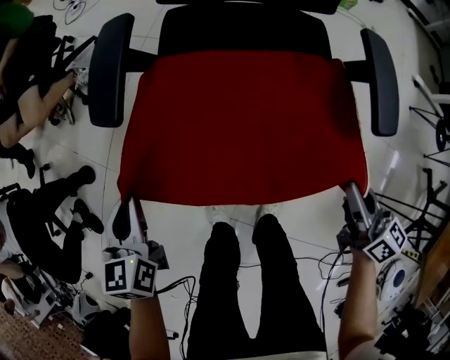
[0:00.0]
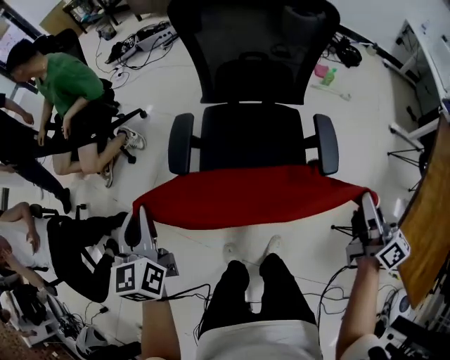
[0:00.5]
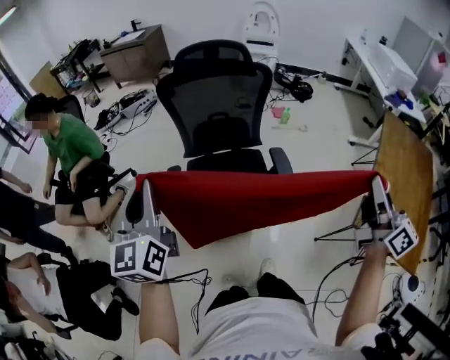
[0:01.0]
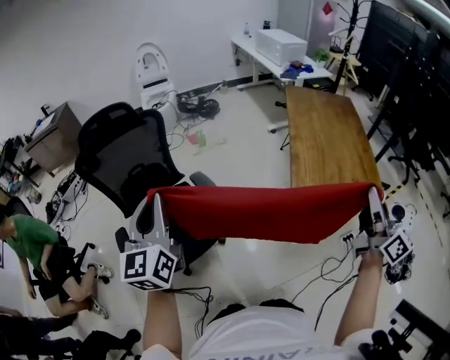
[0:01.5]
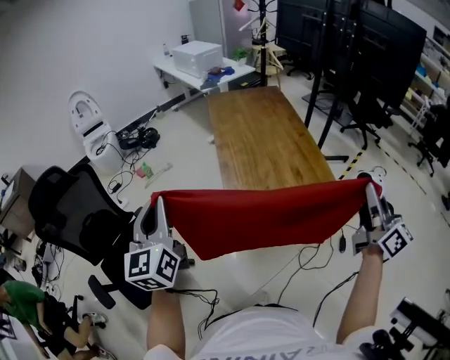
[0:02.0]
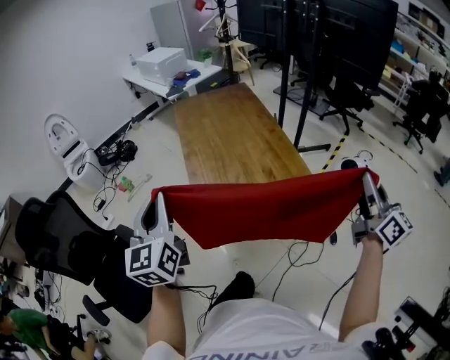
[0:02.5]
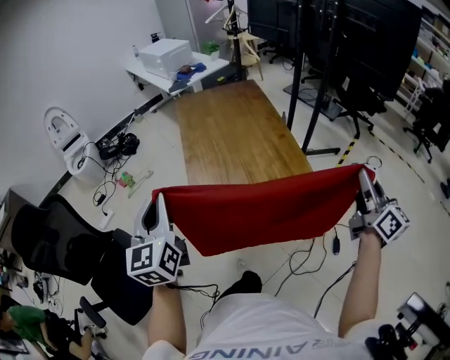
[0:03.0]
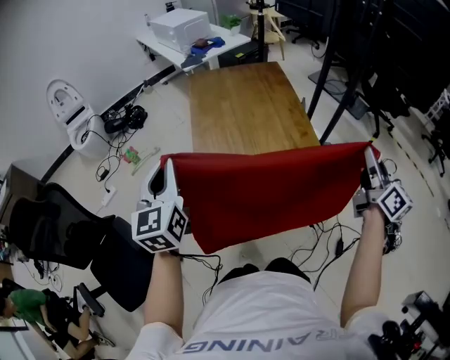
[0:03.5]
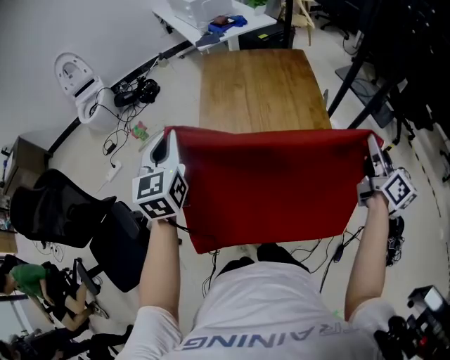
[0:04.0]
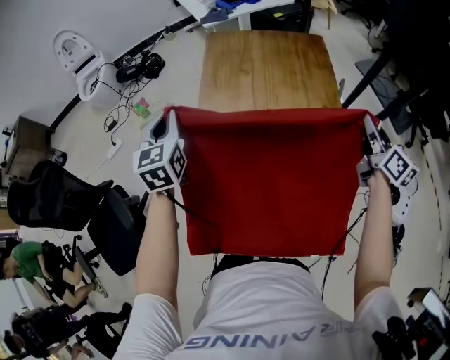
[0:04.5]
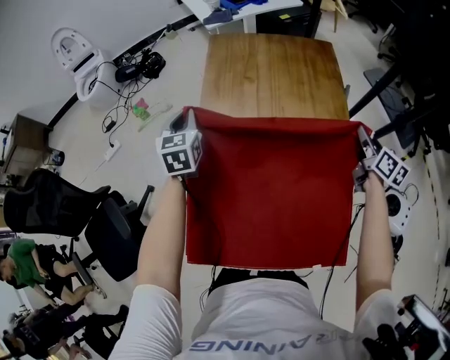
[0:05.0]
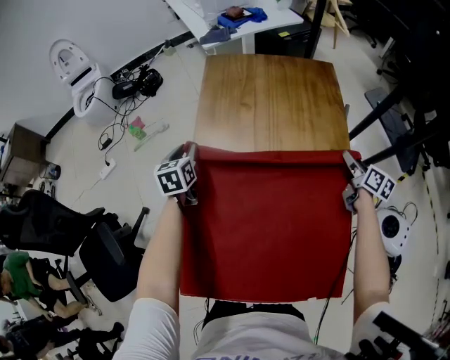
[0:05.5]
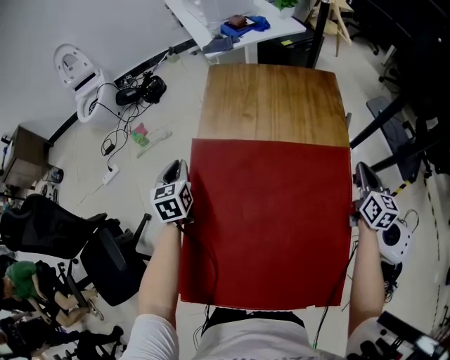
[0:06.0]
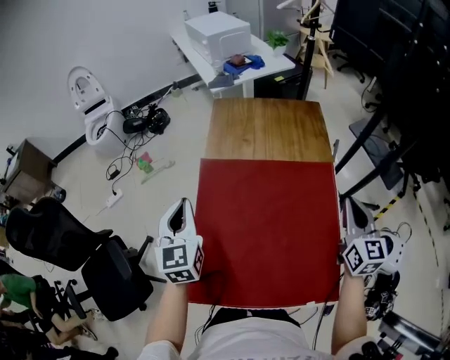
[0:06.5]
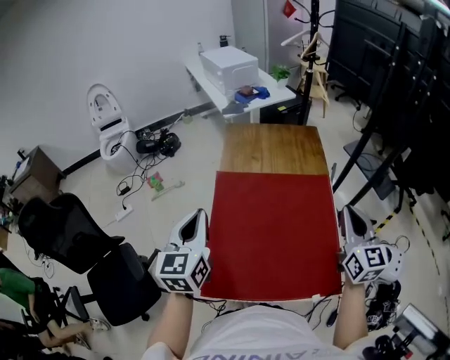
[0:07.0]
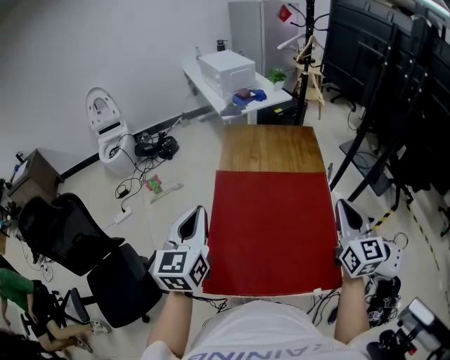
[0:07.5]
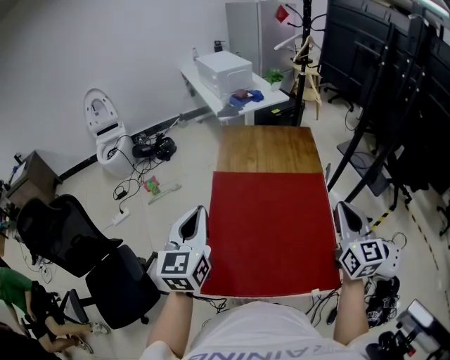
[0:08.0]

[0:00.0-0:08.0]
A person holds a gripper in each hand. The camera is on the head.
0:00.0 to 0:02.0: The left gripper changes place by roughly 80 cm, and points its fingers about 40 degrees further upward, while the right gripper ends up roughly 90 cm from where it was, and changes its angle by some 90 degrees.
0:02.0 to 0:04.0: The two grippers travel together, forward, some 50 cm.
0:04.0 to 0:06.0: The left gripper goes approximately 30 cm downward and forward, and rotates some 20 degrees. Meanwhile the right gripper moves forward and downward, some 30 cm, changes its angle by roughly 20 degrees, and opens and closes again.
0:06.0 to 0:08.0: The left gripper is displaced upward and backward by roughly 40 cm, and changes its angle by approximately 30 degrees. Meanwhile the right gripper heads backward, upward and to the left, covering about 40 cm, and turns by approximately 20 degrees.

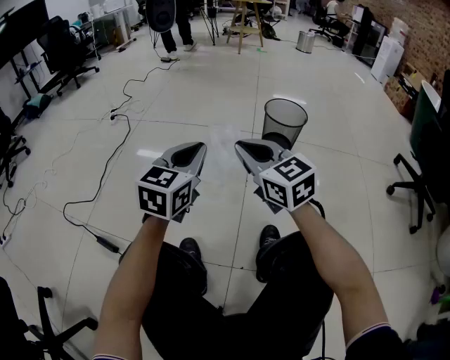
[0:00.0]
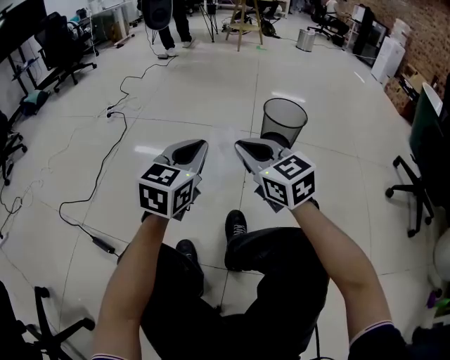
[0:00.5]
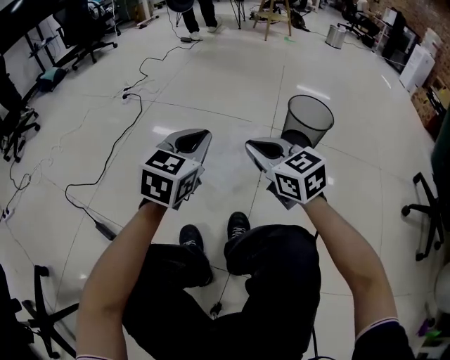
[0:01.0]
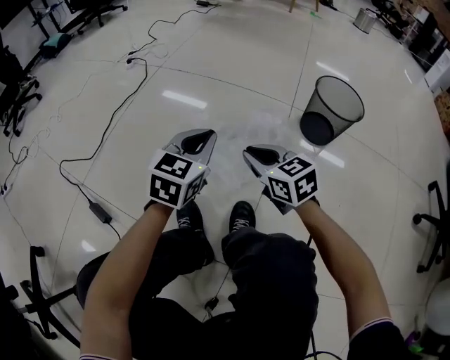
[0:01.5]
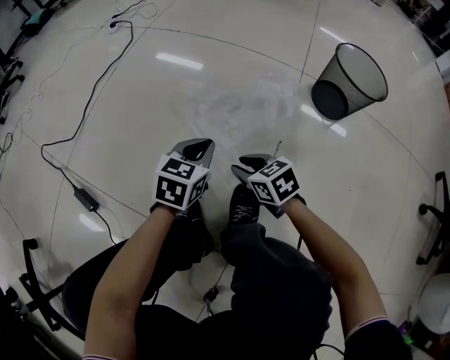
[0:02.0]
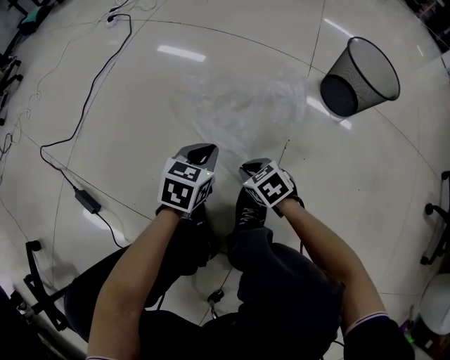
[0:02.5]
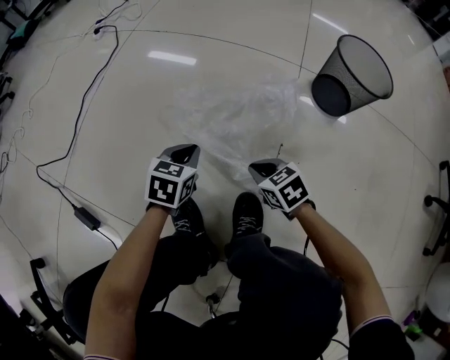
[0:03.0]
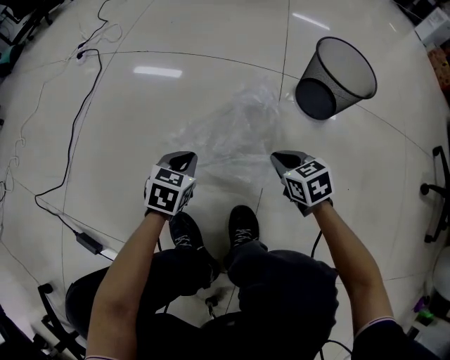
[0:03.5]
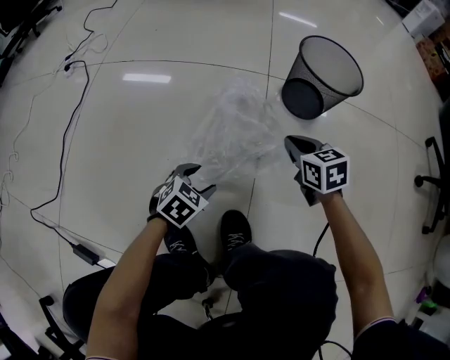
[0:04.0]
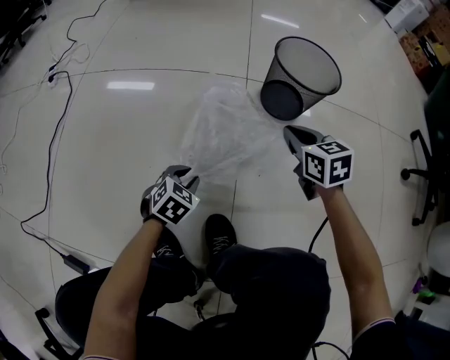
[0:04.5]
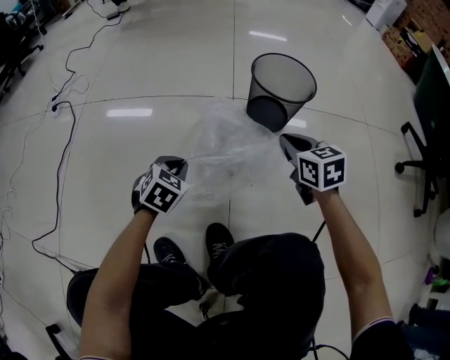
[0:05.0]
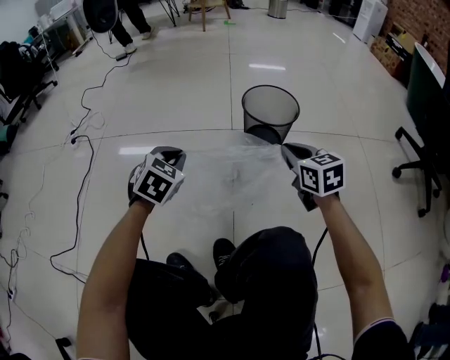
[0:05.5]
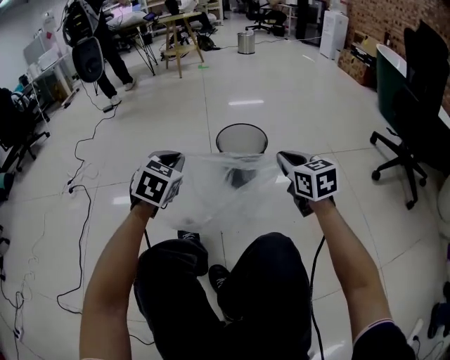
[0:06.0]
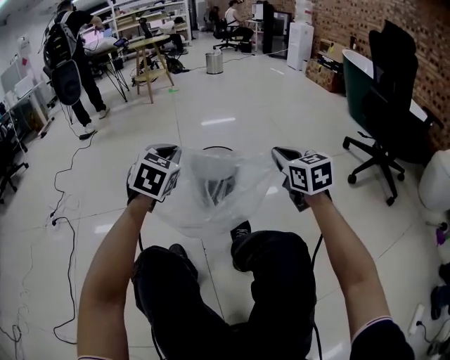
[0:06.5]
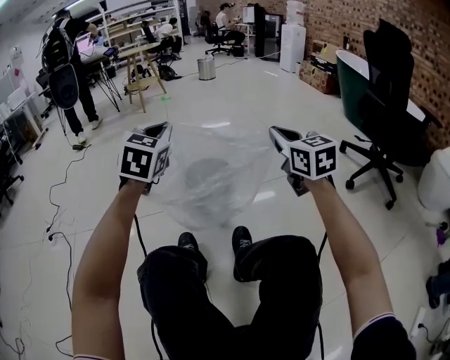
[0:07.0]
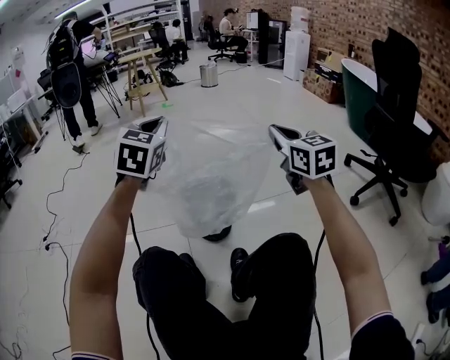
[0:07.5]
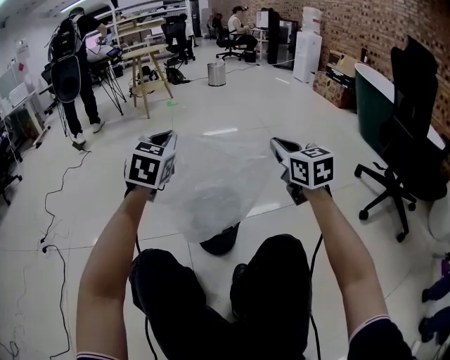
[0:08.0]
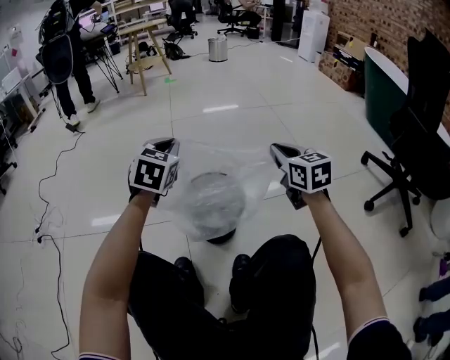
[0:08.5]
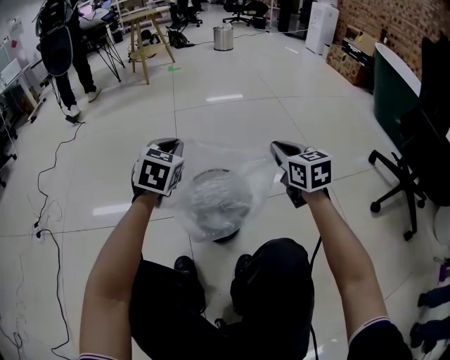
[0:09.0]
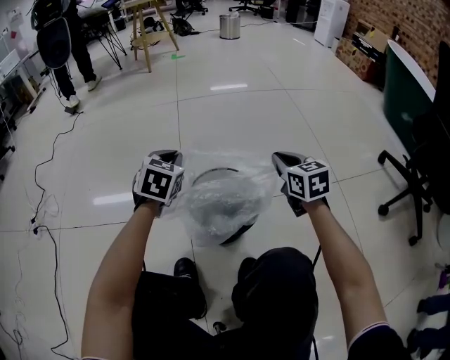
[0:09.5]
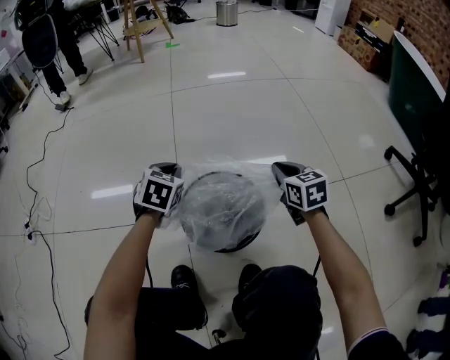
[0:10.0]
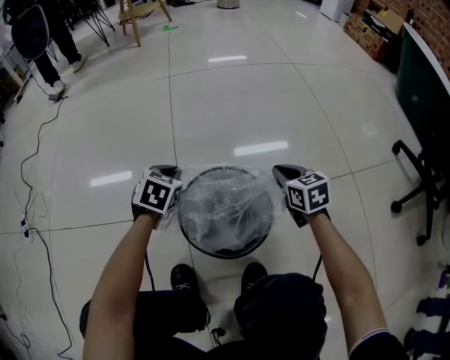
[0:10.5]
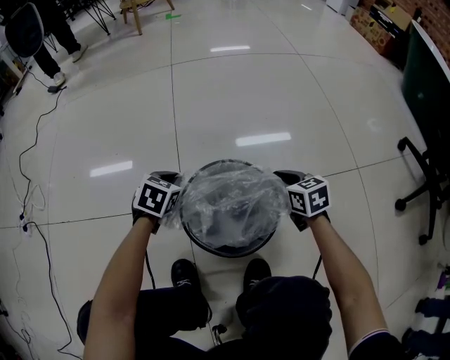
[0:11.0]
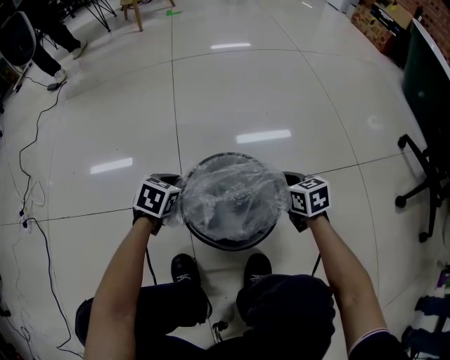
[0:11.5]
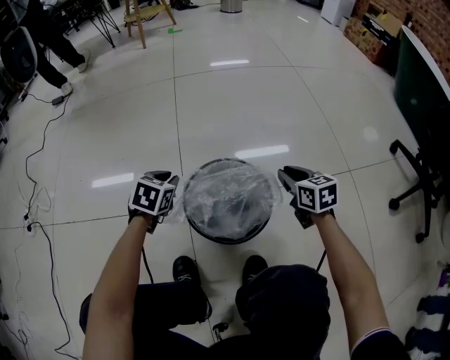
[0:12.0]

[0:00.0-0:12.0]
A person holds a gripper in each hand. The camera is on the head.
0:00.0 to 0:02.0: The grippers both shift downward by about 35 cm. The left gripper swivels some 30 degrees. The right gripper angles its fingers downward, by about 30 degrees, and opens.
0:02.0 to 0:04.0: The left gripper goes approximately 10 cm downward, changes its angle by roughly 40 degrees, and opens up. Meanwhile the right gripper changes place by about 25 cm, turns by some 30 degrees, and closes up.
0:04.0 to 0:06.0: The right gripper travels upward and to the right by about 30 cm, and changes its angle by about 30 degrees, while the left gripper heads upward and forward, covering about 40 cm, turns by about 30 degrees, and closes up.
0:06.0 to 0:08.0: The left gripper moves forward and upward, about 30 cm. Meanwhile the right gripper goes approximately 30 cm forward, upward and to the right.
0:08.0 to 0:10.0: Both grippers move downward, some 30 cm. The left gripper swivels about 30 degrees; the right gripper changes its angle by about 20 degrees.
0:10.0 to 0:12.0: The two grippers go some 5 cm downward.

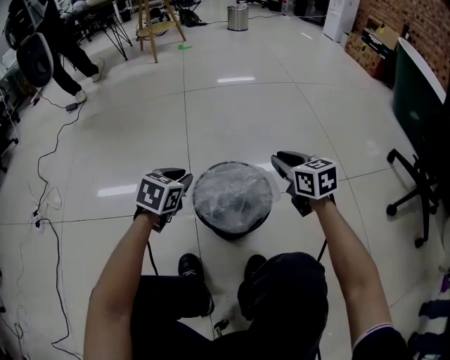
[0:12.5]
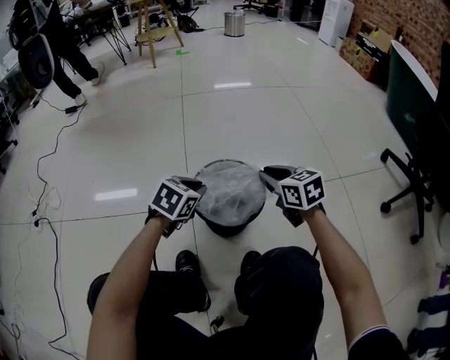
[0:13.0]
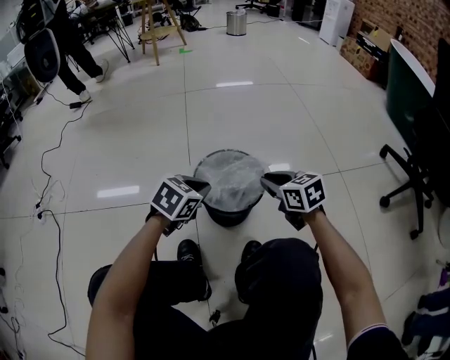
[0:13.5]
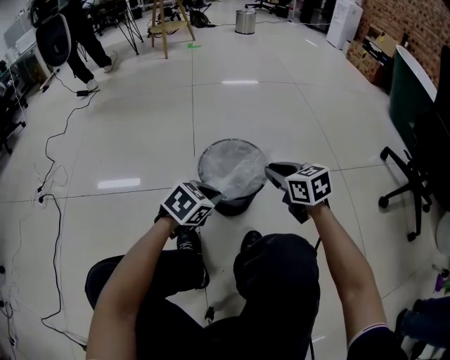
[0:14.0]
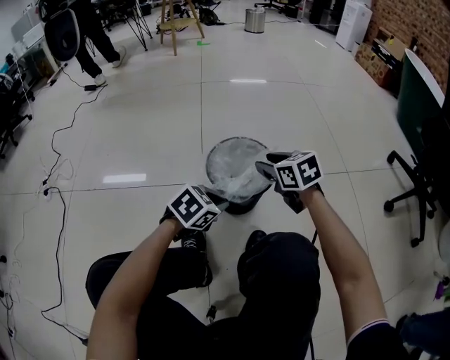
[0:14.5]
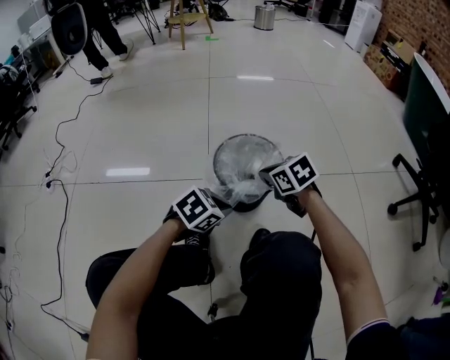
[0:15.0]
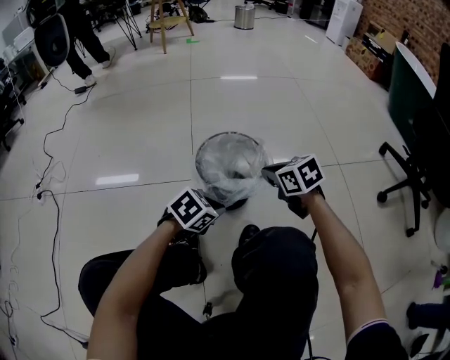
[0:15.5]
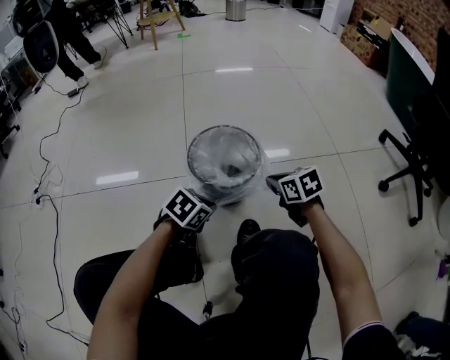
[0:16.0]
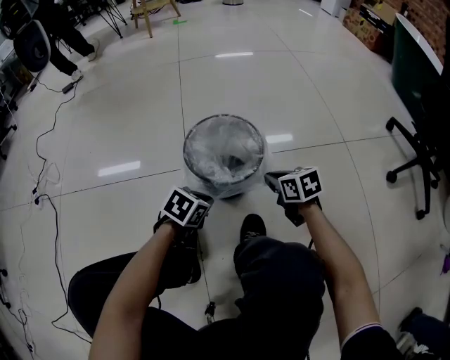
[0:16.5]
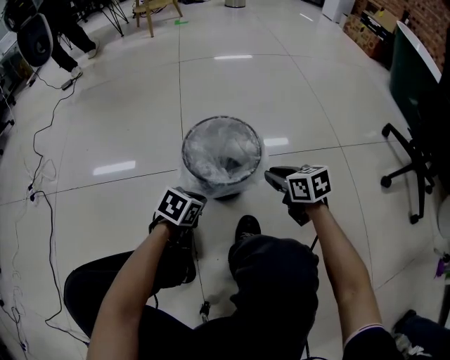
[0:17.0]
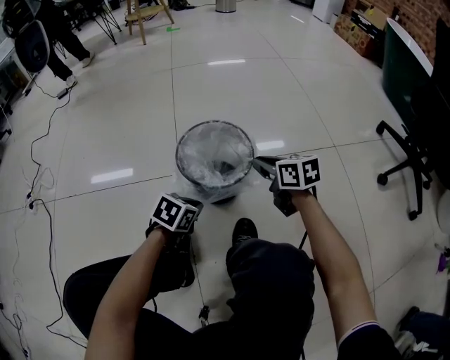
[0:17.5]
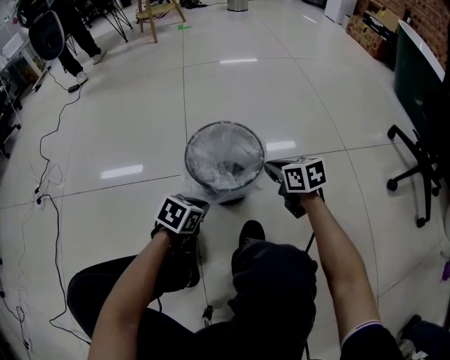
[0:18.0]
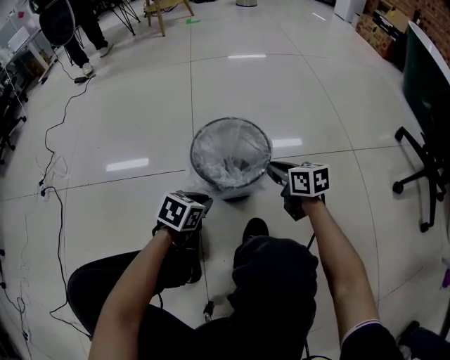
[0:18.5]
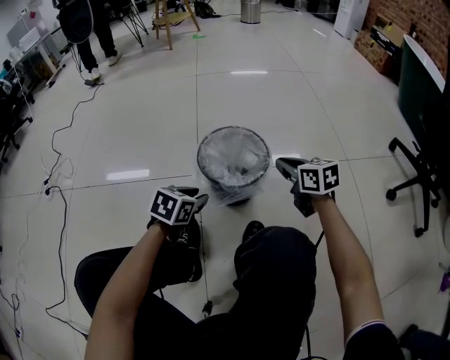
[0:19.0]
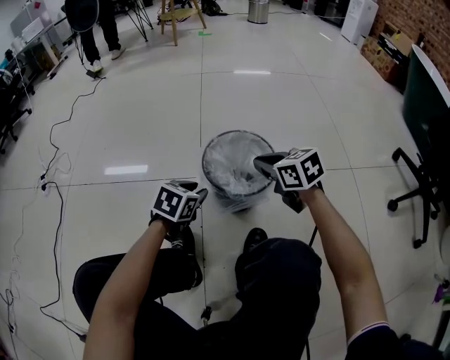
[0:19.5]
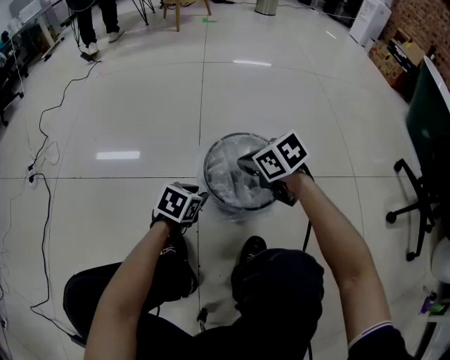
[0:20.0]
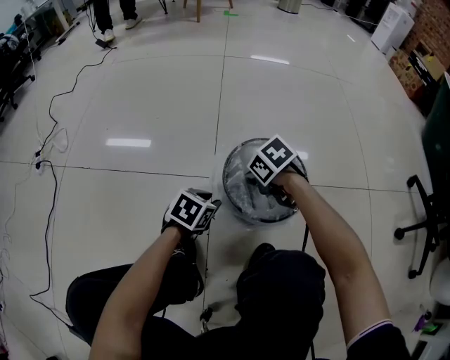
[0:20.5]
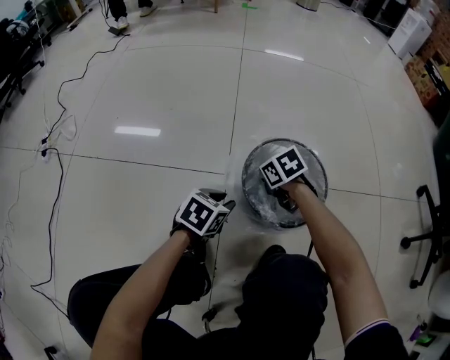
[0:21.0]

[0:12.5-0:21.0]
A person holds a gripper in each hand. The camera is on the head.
0:12.5 to 0:14.5: The left gripper heads backward and to the right, covering some 20 cm, and swivels approximately 20 degrees; the right gripper shifts some 10 cm backward and to the left, and opens its fingers.
0:14.5 to 0:16.5: The right gripper shifts roughly 15 cm downward and to the right, and closes; the left gripper heads downward, covering roughly 10 cm.
0:16.5 to 0:19.0: The right gripper swings up and down, approximately 10 cm each way, with 2 reversals. The left gripper heads upward and to the left, covering some 10 cm, and opens up.
0:19.0 to 0:21.0: The right gripper ends up about 25 cm from where it was, and turns by roughly 40 degrees; the left gripper is displaced downward by about 10 cm.
